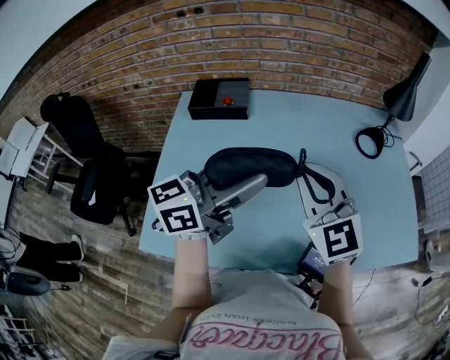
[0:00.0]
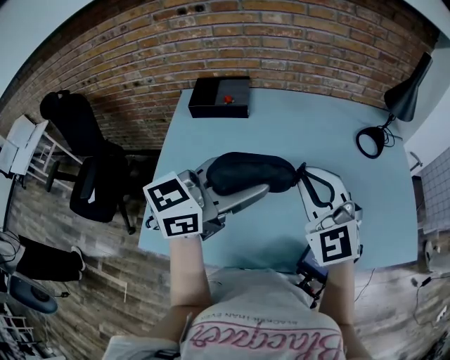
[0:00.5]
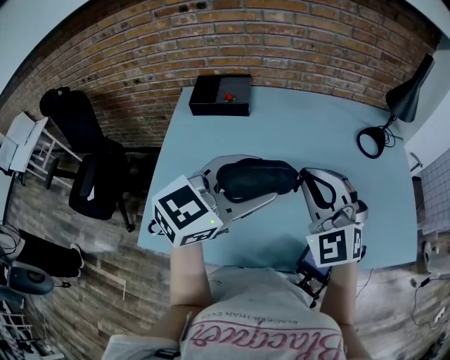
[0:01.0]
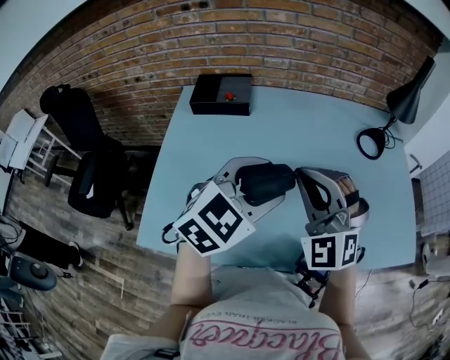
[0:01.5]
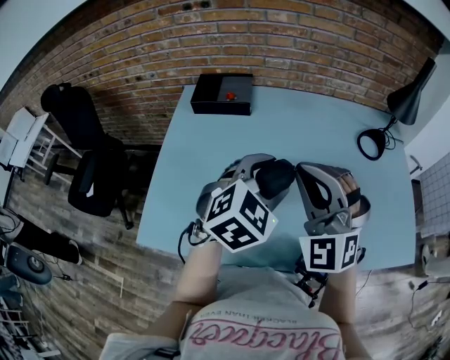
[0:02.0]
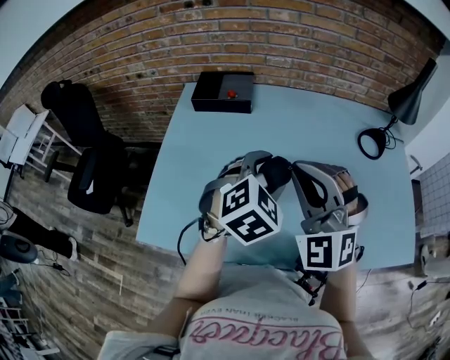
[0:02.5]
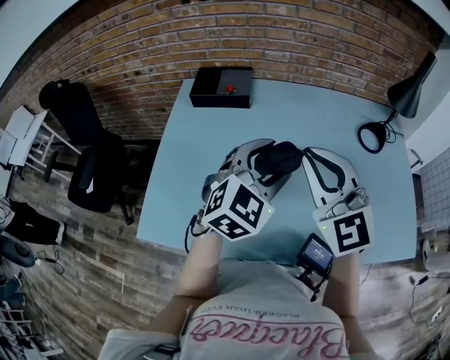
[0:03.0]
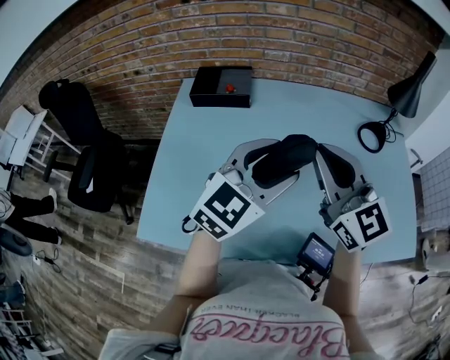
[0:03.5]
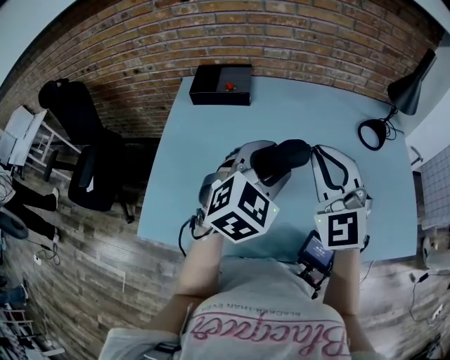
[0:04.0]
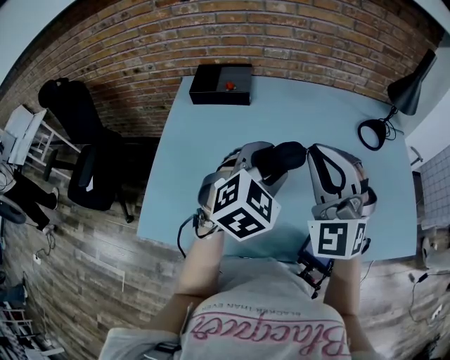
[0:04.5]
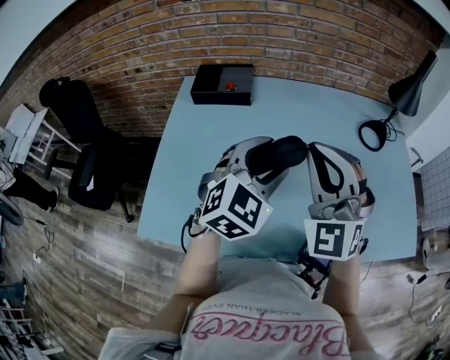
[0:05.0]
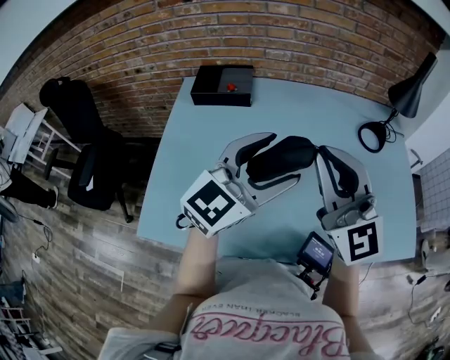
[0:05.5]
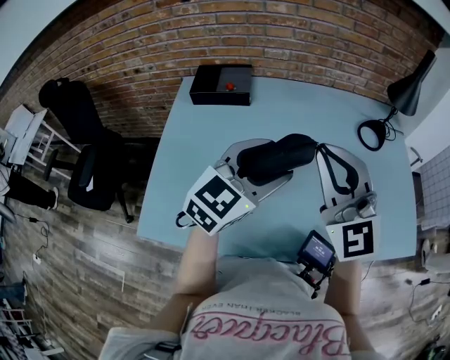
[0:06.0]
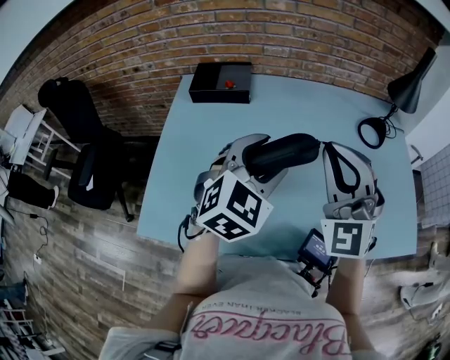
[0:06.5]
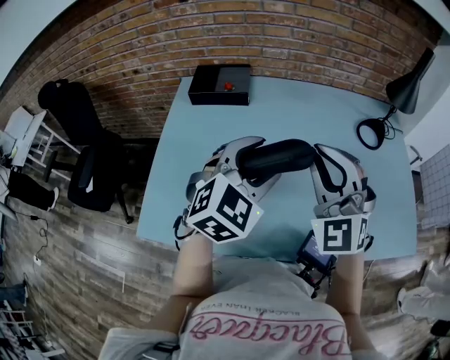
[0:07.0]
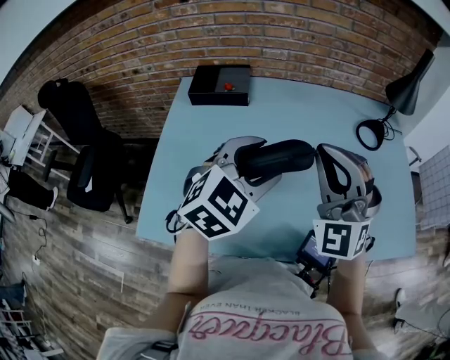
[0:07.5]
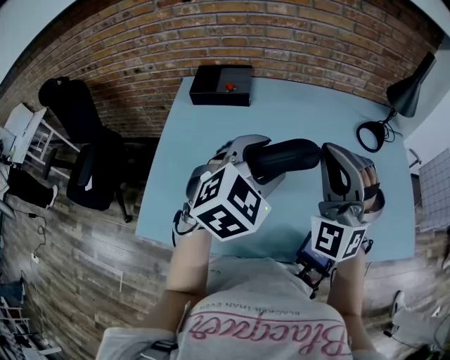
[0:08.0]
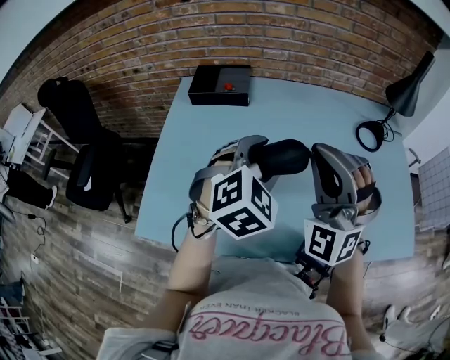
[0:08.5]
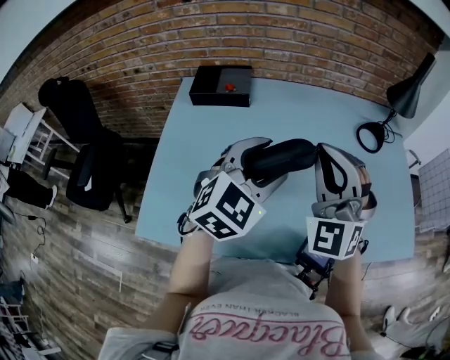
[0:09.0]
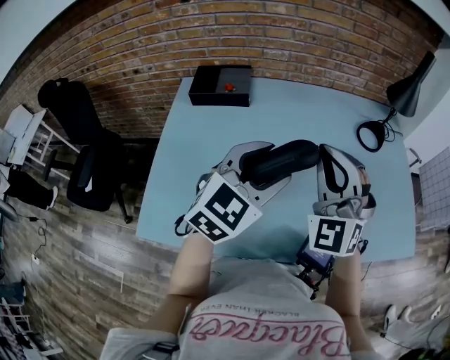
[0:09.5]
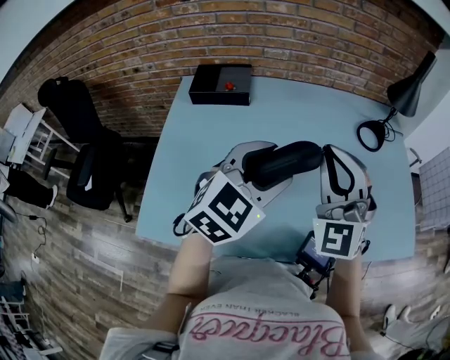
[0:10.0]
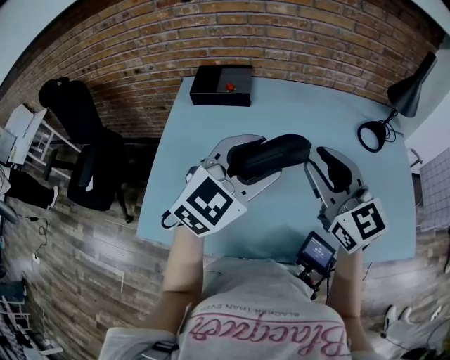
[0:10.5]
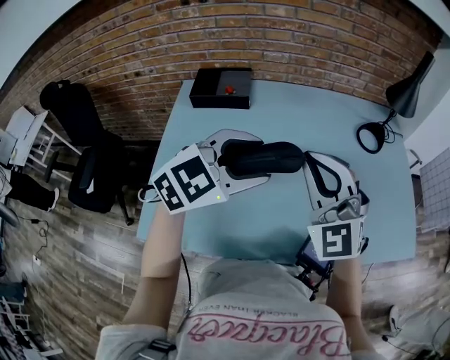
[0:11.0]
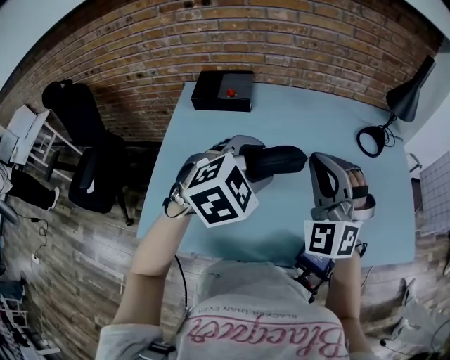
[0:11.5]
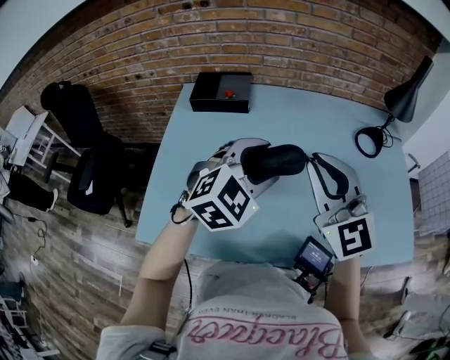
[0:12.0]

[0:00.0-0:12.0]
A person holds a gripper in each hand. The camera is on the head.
0:00.0 to 0:02.0: The right gripper changes its angle by roughly 40 degrees. Meanwhile the left gripper heads downward, covering approximately 10 cm, and angles its fingers downward, by some 40 degrees.
0:04.0 to 0:06.0: The right gripper goes about 5 cm upward, and rotates about 20 degrees. Meanwhile the left gripper swivels roughly 30 degrees.
0:06.0 to 0:08.0: The right gripper changes its angle by roughly 40 degrees; the left gripper changes its angle by about 30 degrees.
0:08.0 to 0:10.0: The grippers stay close to where they were, moving slightly.
0:10.0 to 0:12.0: The right gripper rotates some 30 degrees, and opens, then closes once more.

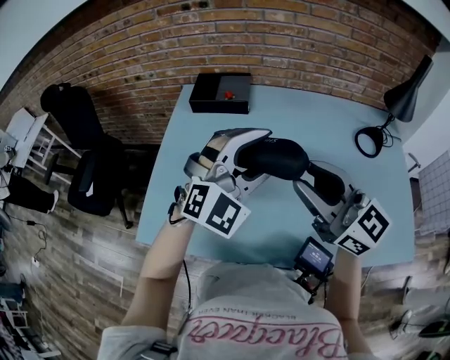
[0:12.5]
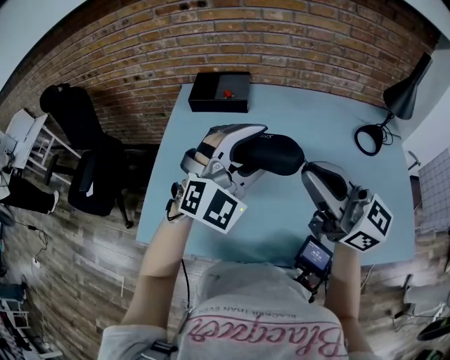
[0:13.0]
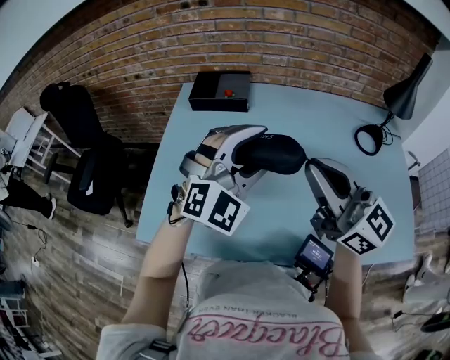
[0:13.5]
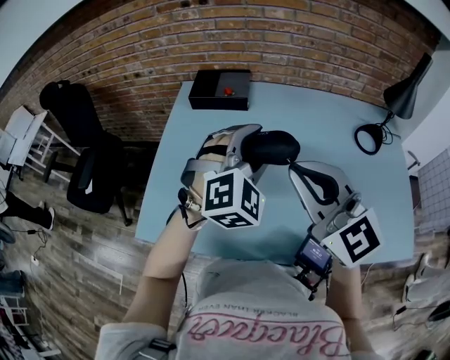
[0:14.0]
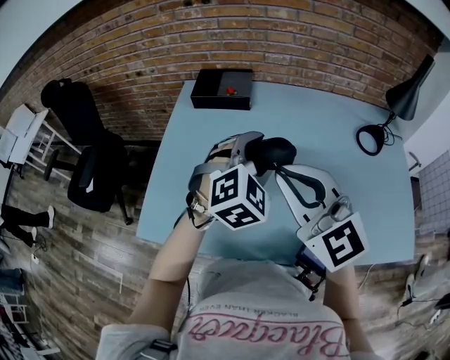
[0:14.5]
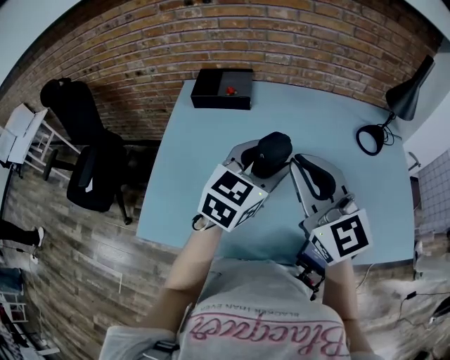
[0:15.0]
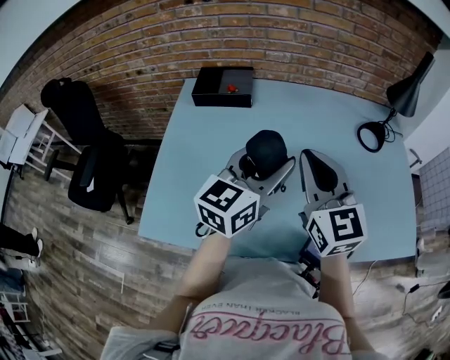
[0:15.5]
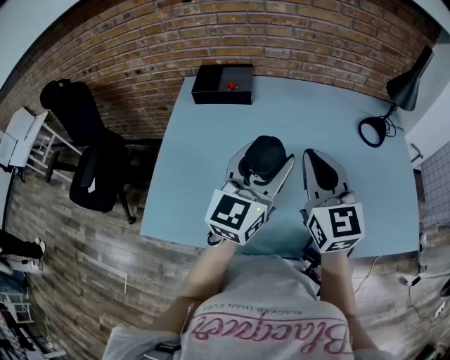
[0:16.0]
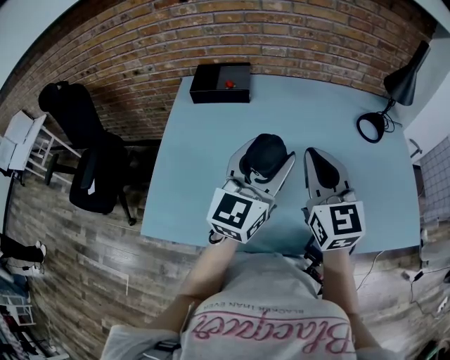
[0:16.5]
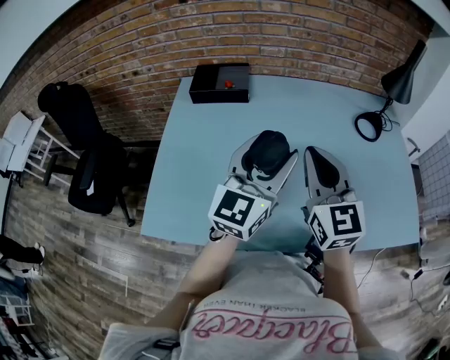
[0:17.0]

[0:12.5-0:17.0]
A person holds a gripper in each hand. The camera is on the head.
0:12.5 to 0:14.5: The right gripper goes about 5 cm to the left, swivels approximately 20 degrees, and closes up. The left gripper goes some 5 cm downward, and turns by about 30 degrees.
0:14.5 to 0:17.0: The left gripper changes place by approximately 5 cm, and angles its fingers upward, by about 40 degrees, while the right gripper moves to the right and downward, roughly 10 cm, and rotates approximately 30 degrees.

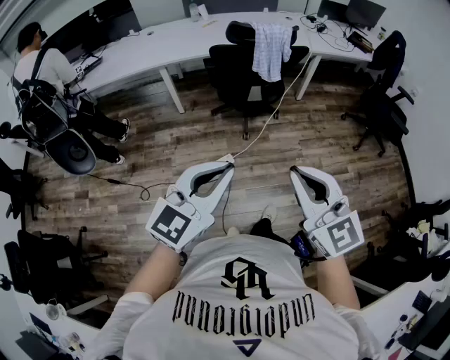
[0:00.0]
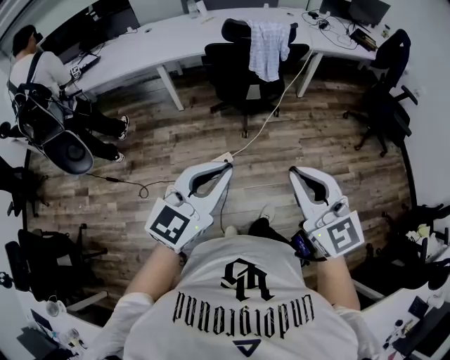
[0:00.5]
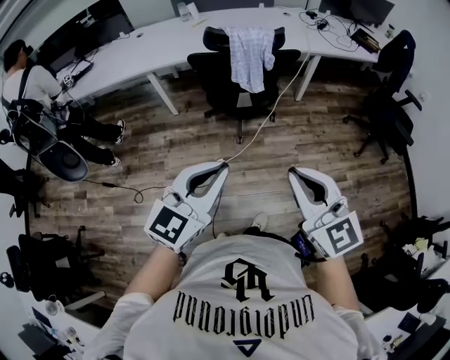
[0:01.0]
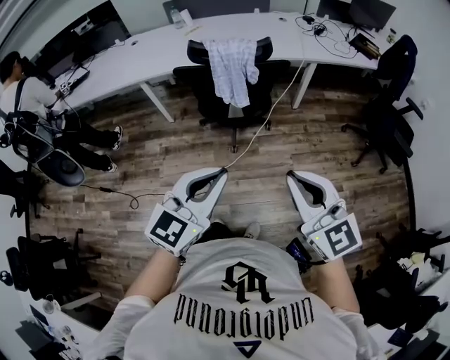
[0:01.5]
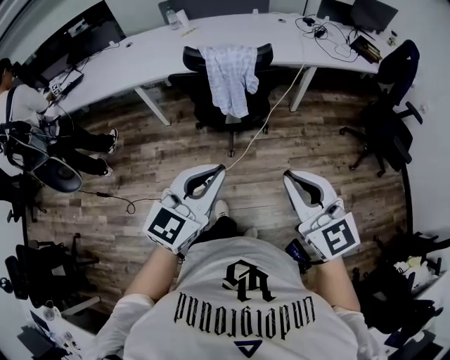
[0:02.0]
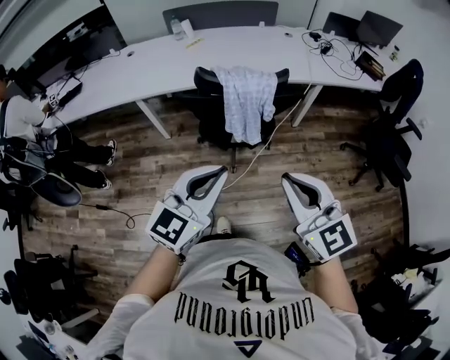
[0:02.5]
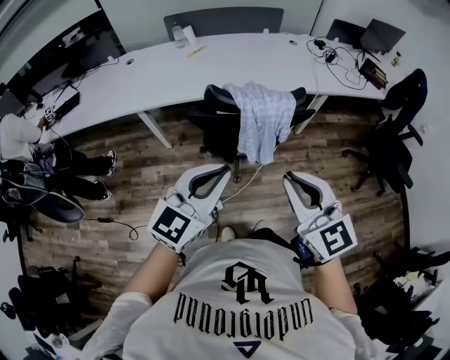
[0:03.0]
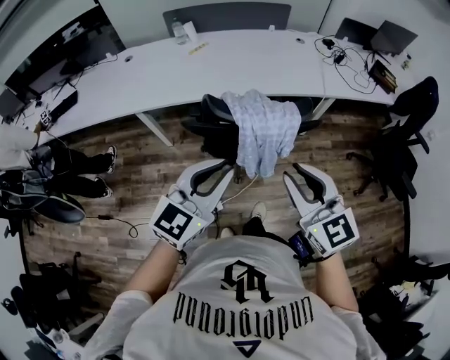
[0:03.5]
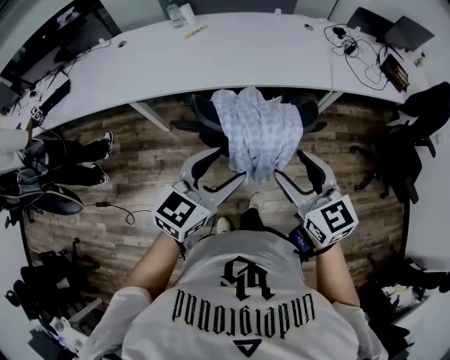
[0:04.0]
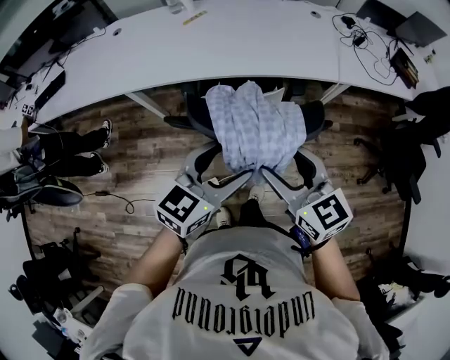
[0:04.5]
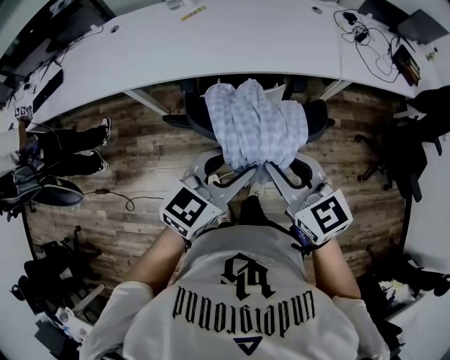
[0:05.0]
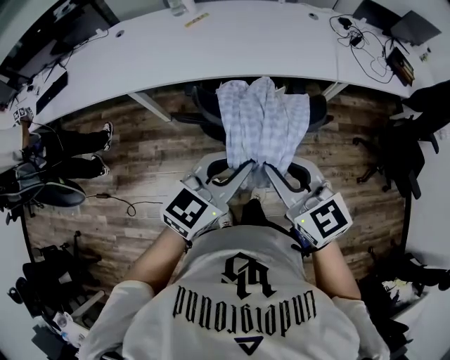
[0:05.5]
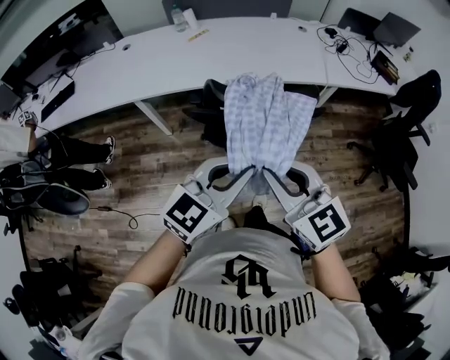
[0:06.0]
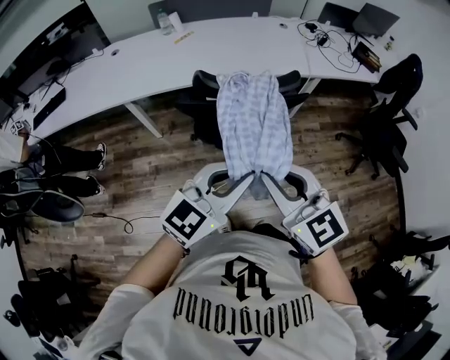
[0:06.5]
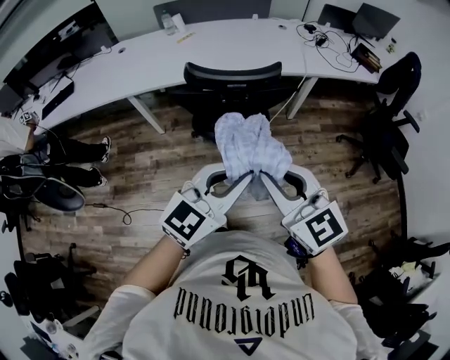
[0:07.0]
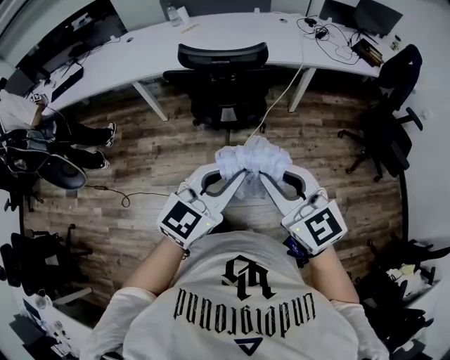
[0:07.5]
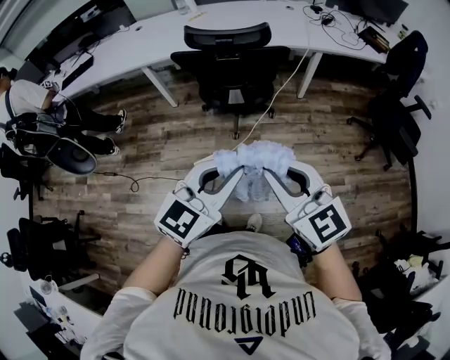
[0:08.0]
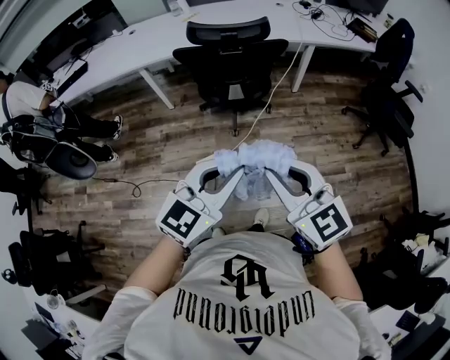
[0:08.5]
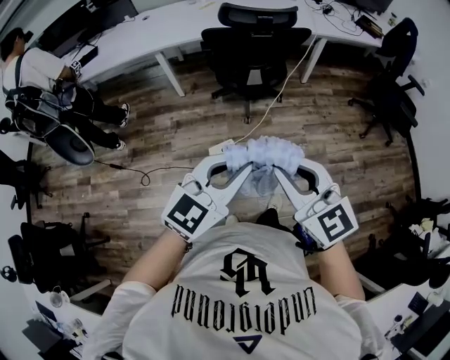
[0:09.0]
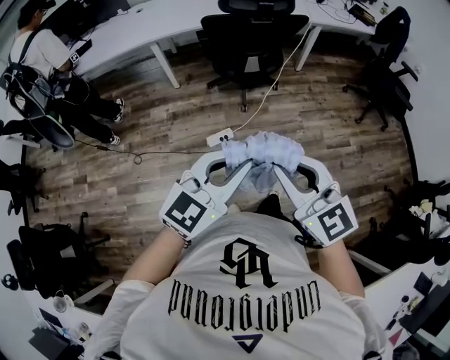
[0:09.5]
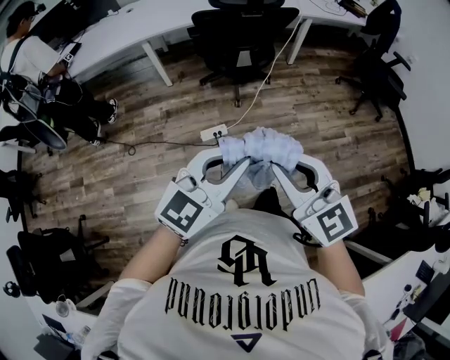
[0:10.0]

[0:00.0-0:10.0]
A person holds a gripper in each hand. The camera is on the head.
0:00.0 to 0:02.0: Both grippers move forward and to the right, about 30 cm.
0:02.0 to 0:04.0: Both grippers travel together forward, some 30 cm. The left gripper opens up. Meanwhile the right gripper opens.
0:04.0 to 0:06.0: The left gripper moves backward, roughly 10 cm, and closes up. Meanwhile the right gripper shifts some 15 cm backward and to the left, and closes.
0:06.0 to 0:08.0: Both grippers travel together backward and to the right, some 30 cm.
0:08.0 to 0:10.0: The grippers both shift backward and to the left by approximately 30 cm.
